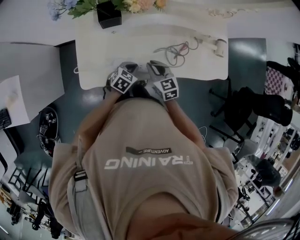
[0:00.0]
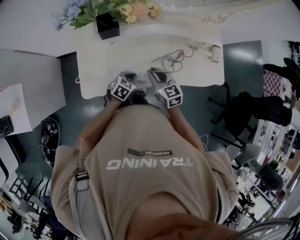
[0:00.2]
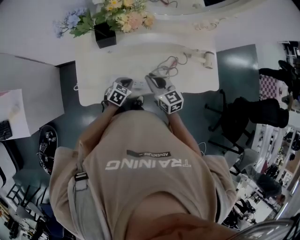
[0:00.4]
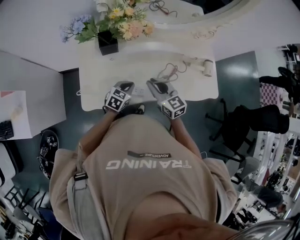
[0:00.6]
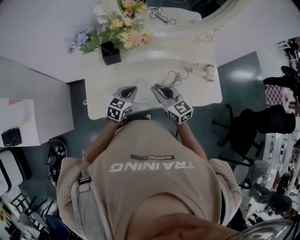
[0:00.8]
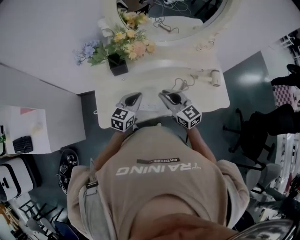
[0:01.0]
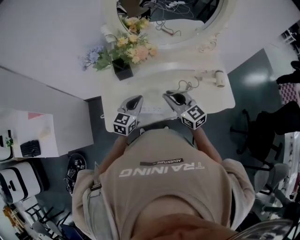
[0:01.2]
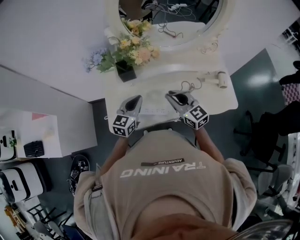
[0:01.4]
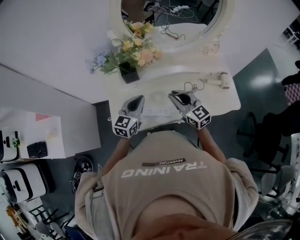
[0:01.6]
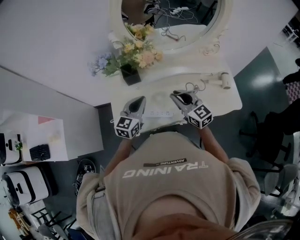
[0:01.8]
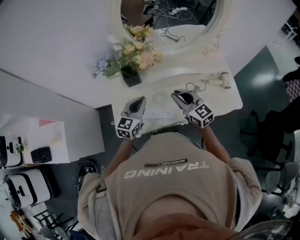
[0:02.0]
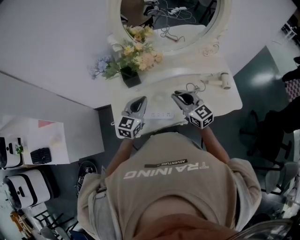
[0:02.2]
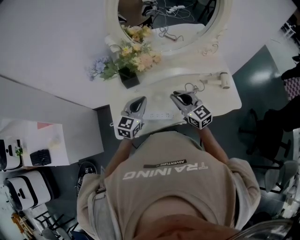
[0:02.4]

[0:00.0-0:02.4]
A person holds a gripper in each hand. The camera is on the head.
0:00.0 to 0:01.2: Both grippers travel together upward, some 20 cm. The right gripper changes its angle by approximately 20 degrees, while the left gripper turns by roughly 30 degrees.
0:01.2 to 0:02.4: There are only small adjustments of the grippers.

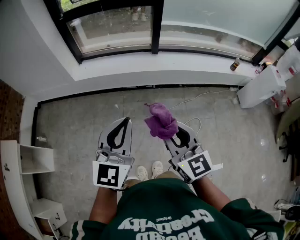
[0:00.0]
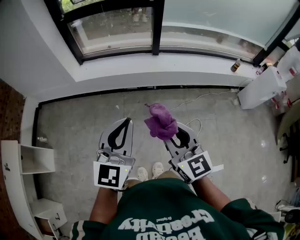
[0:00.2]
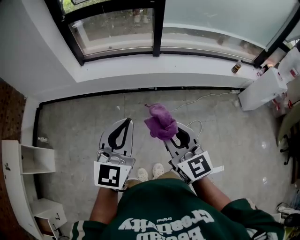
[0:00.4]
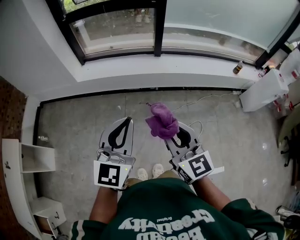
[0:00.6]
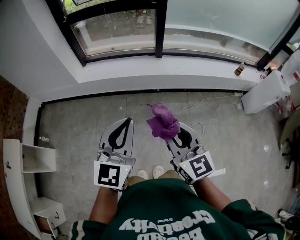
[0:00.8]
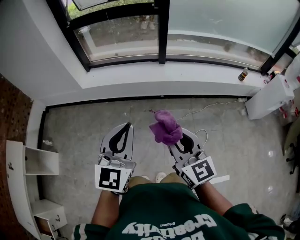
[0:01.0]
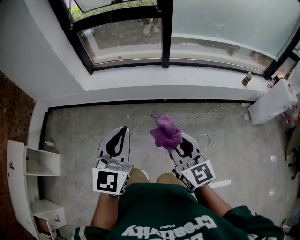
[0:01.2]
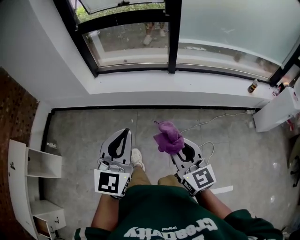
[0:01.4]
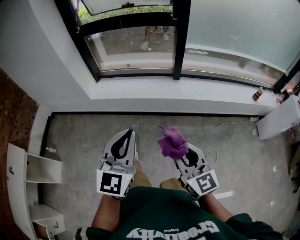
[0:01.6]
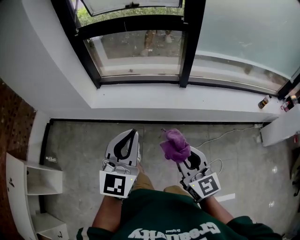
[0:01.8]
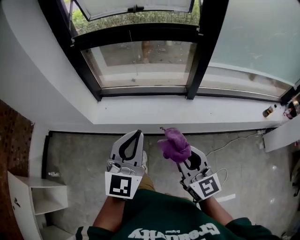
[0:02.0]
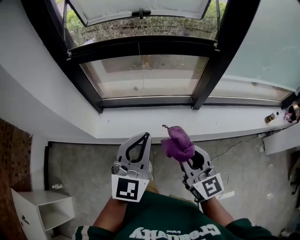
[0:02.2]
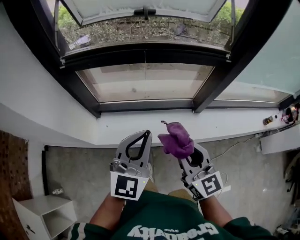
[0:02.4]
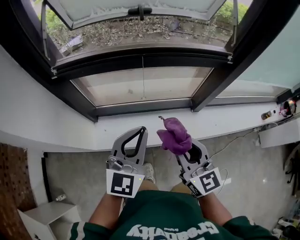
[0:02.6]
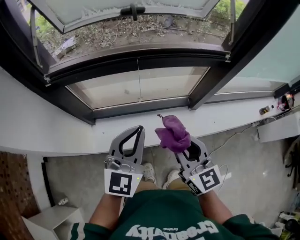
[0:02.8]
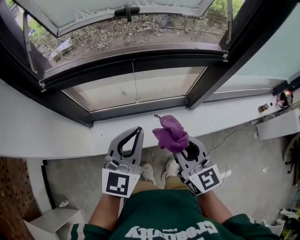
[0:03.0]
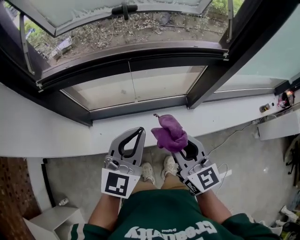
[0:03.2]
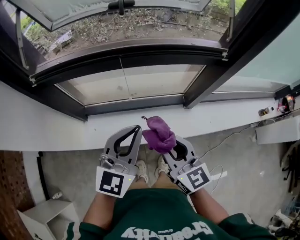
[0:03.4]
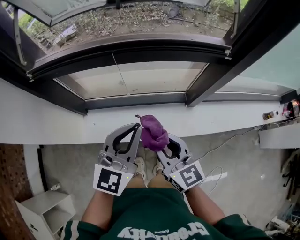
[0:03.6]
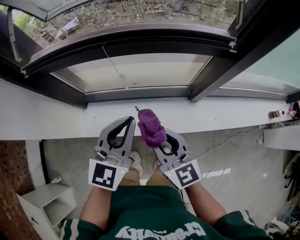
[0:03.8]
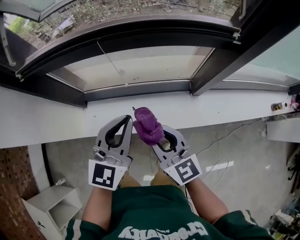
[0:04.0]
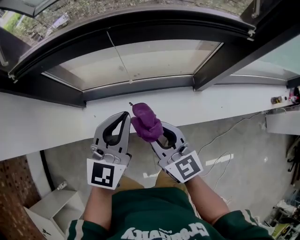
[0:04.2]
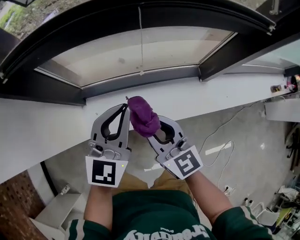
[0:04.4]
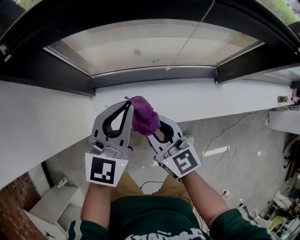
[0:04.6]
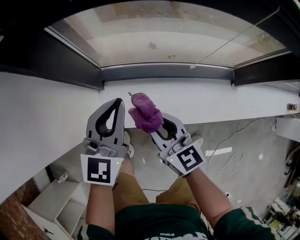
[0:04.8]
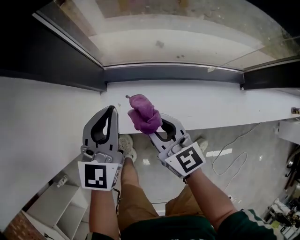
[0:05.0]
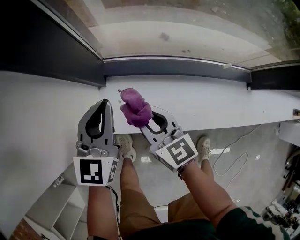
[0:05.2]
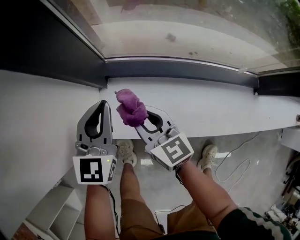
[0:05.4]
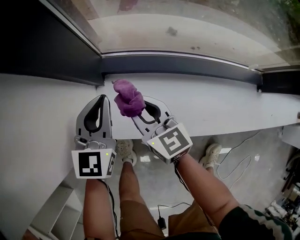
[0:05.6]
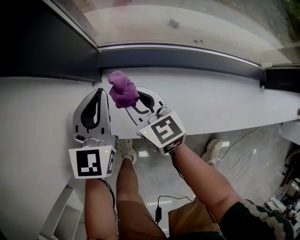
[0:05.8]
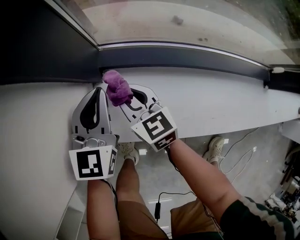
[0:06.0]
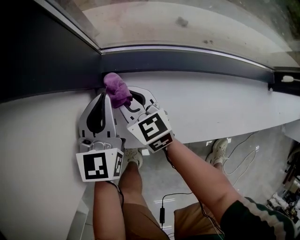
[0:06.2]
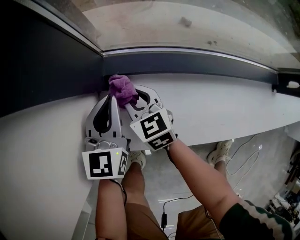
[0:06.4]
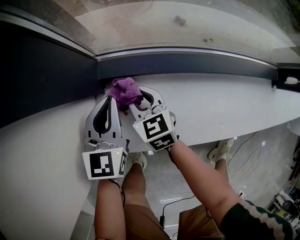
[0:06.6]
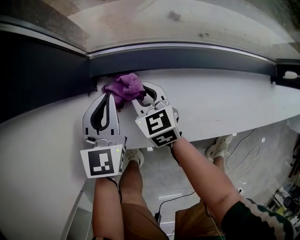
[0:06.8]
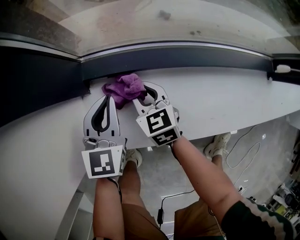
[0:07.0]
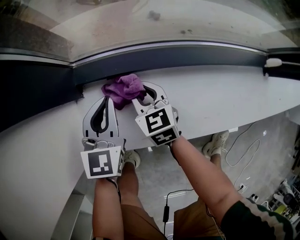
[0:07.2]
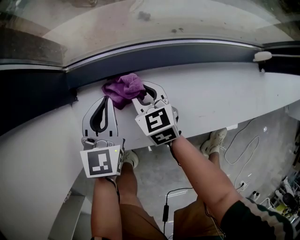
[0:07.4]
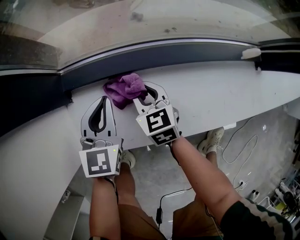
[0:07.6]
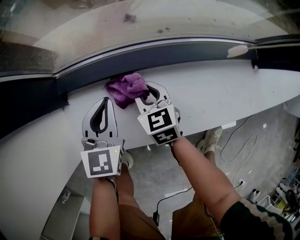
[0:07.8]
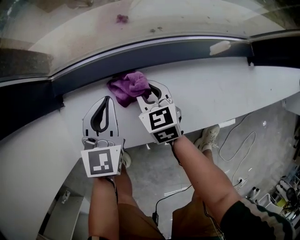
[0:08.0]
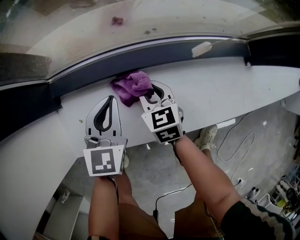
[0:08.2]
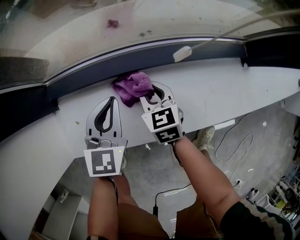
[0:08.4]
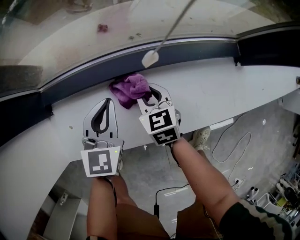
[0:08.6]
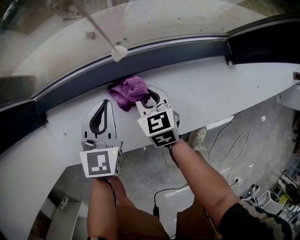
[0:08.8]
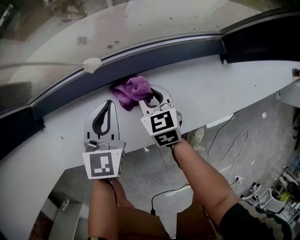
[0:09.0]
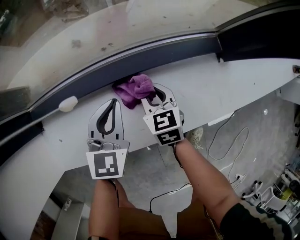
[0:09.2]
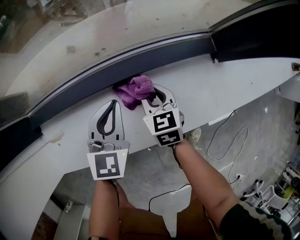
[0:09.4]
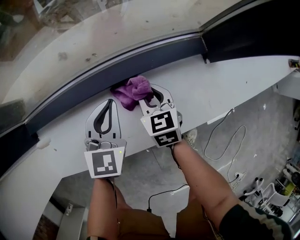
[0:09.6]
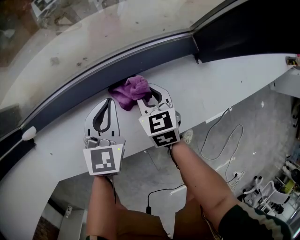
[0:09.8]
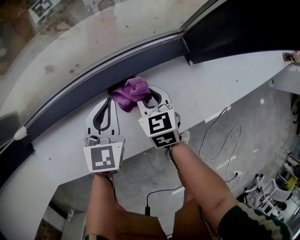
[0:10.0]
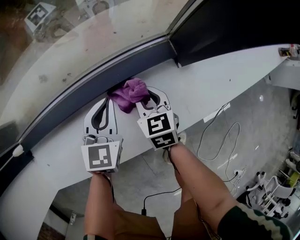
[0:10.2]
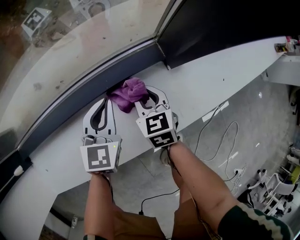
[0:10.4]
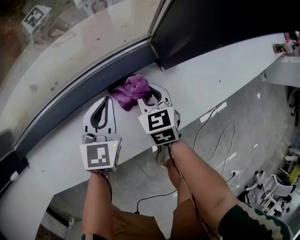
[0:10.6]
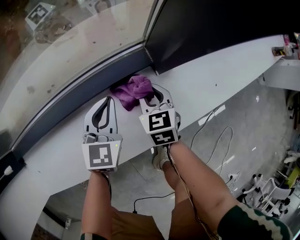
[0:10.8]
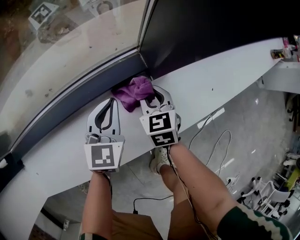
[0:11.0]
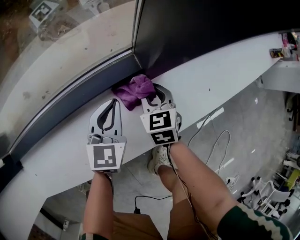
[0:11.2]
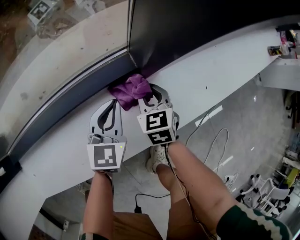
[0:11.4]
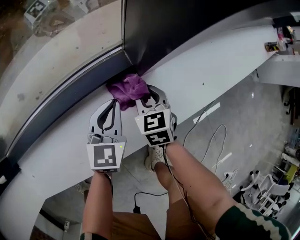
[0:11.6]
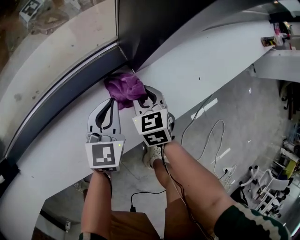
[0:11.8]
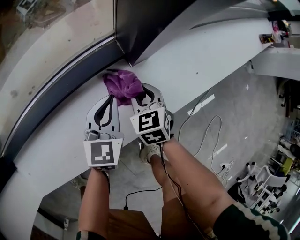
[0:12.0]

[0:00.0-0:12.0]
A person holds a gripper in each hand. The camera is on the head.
0:00.0 to 0:01.6: The right gripper shifts about 15 cm forward and downward, while the left gripper moves forward, some 15 cm.
0:01.6 to 0:03.0: The pair of grippers is taken forward and to the left, approximately 60 cm.
0:03.0 to 0:04.4: The right gripper moves downward and to the left, some 20 cm, while the left gripper goes approximately 15 cm downward, forward and to the left.
0:04.4 to 0:06.0: The grippers both shift downward, to the left and forward by some 50 cm. The left gripper swivels roughly 30 degrees, while the right gripper turns by roughly 20 degrees.
0:06.0 to 0:07.6: The right gripper goes about 20 cm to the right, and changes its angle by roughly 20 degrees; the left gripper is displaced to the right and downward by about 15 cm.
0:07.6 to 0:09.0: The grippers both shift to the right by roughly 20 cm.
0:09.0 to 0:10.4: The two grippers go some 20 cm to the right.
0:10.4 to 0:12.0: Both grippers move to the right, about 15 cm.

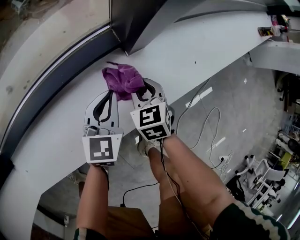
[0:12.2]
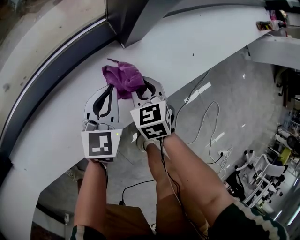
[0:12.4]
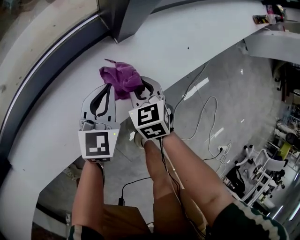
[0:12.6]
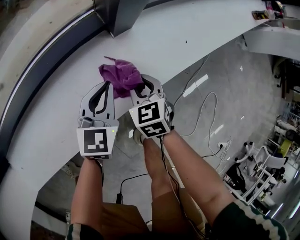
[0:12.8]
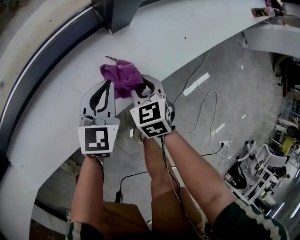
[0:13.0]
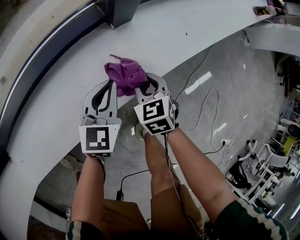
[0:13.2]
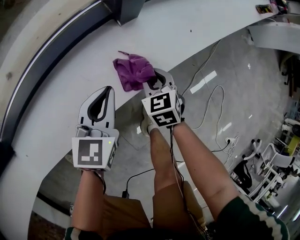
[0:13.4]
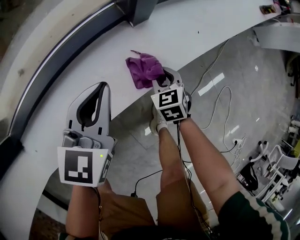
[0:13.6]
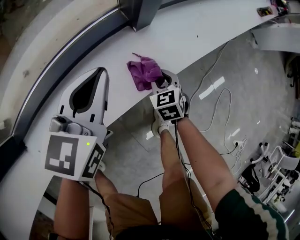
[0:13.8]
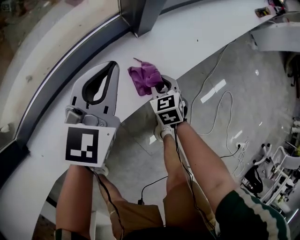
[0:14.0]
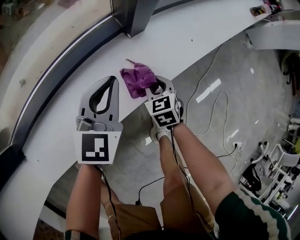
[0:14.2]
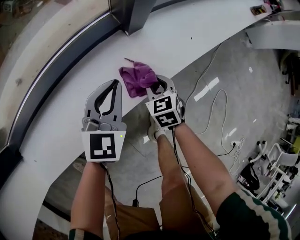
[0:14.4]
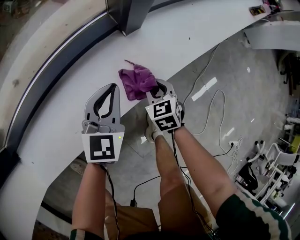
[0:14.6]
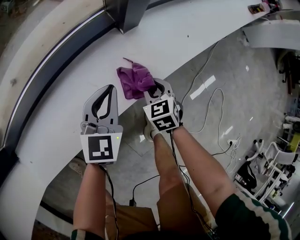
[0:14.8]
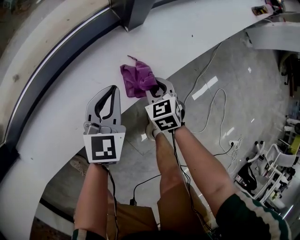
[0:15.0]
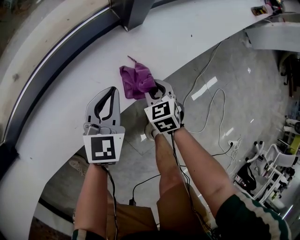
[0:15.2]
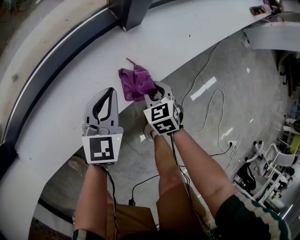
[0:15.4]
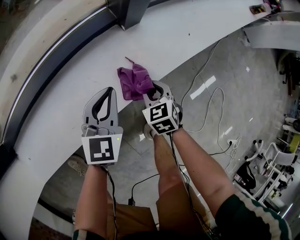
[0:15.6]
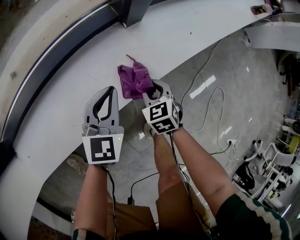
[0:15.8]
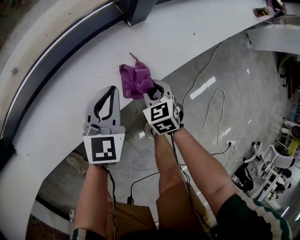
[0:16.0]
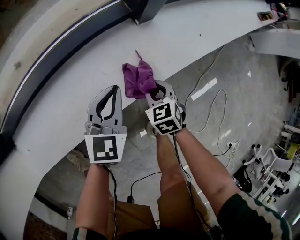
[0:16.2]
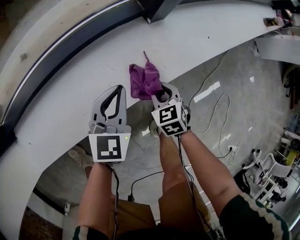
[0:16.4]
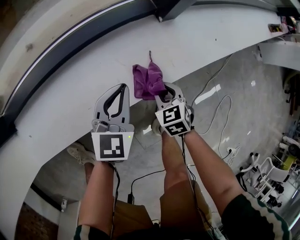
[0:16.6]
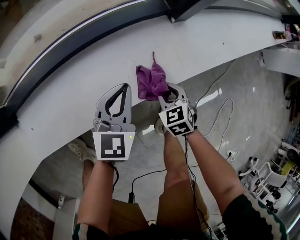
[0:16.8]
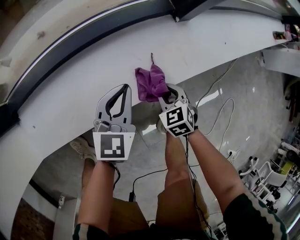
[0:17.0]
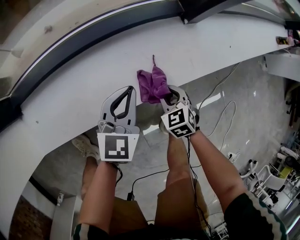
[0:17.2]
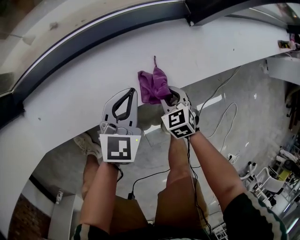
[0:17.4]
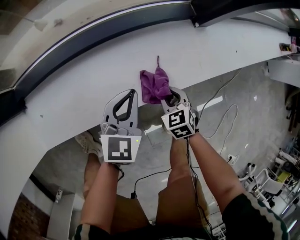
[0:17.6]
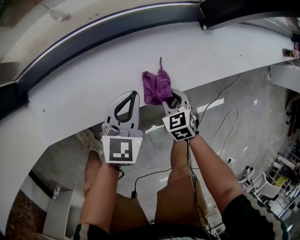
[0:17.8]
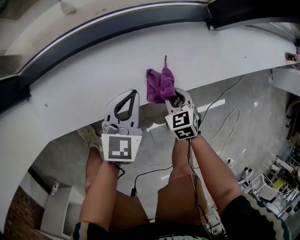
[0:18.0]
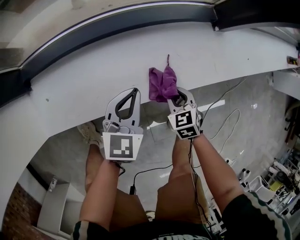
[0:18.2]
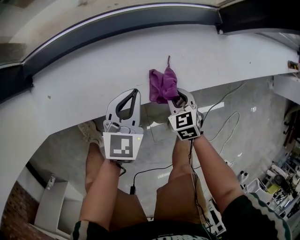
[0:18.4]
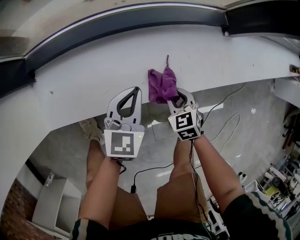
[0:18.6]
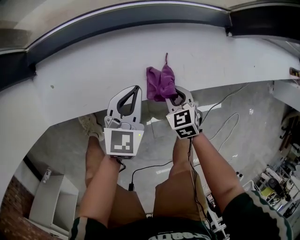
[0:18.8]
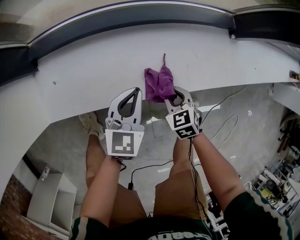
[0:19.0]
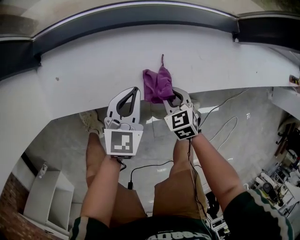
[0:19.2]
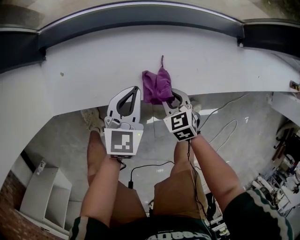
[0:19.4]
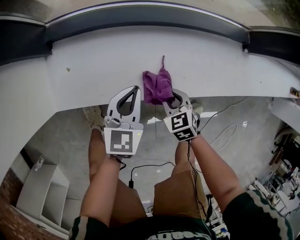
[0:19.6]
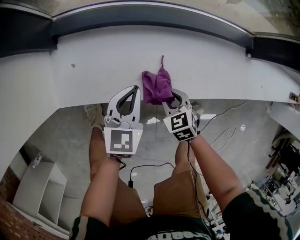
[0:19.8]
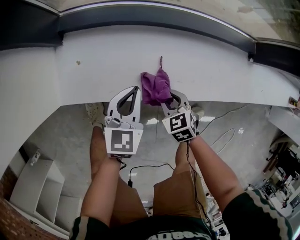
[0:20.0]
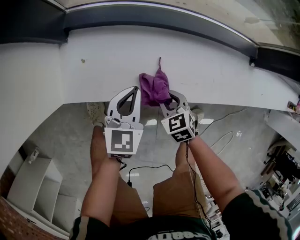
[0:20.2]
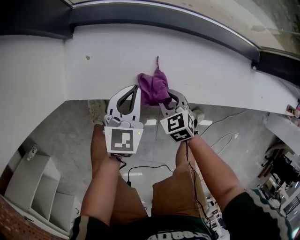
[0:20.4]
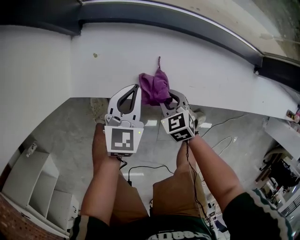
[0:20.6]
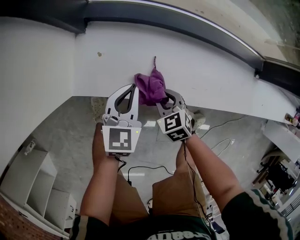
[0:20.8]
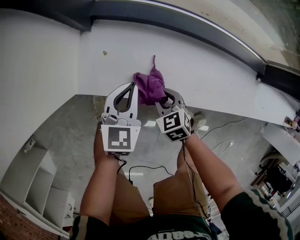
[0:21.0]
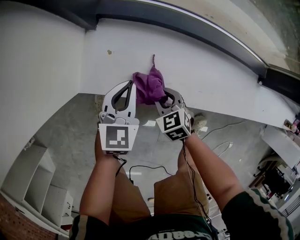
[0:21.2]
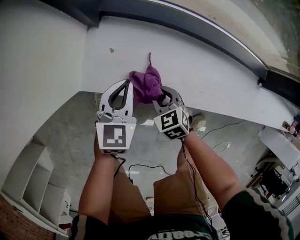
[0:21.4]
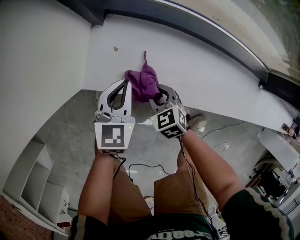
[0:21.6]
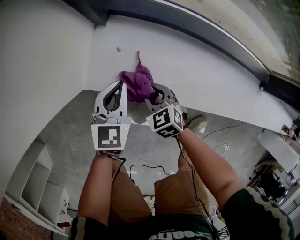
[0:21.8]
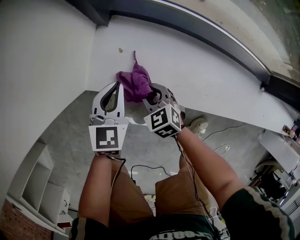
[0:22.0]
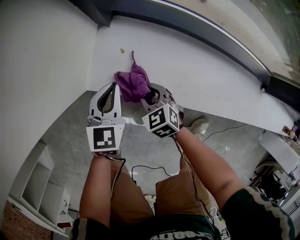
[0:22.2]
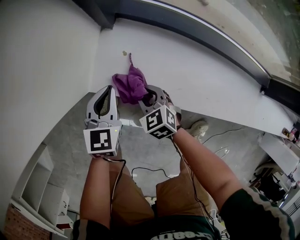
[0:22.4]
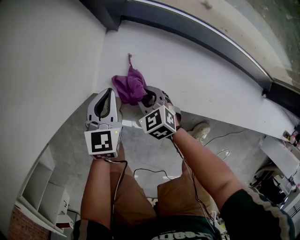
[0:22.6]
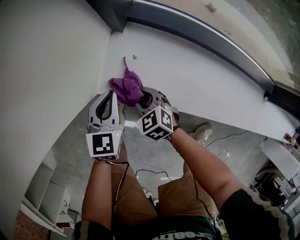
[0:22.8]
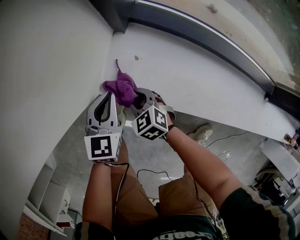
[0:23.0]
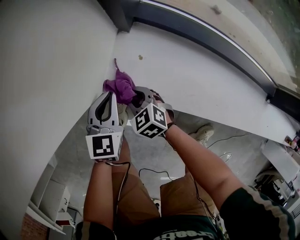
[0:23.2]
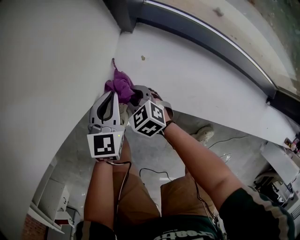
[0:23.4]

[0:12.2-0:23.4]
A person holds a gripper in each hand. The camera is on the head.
0:12.2 to 0:13.8: The right gripper travels backward by approximately 10 cm, while the left gripper shifts some 15 cm upward.
0:13.8 to 0:15.4: The left gripper moves downward, about 15 cm.
0:15.4 to 0:17.0: The grippers both shift to the left and backward by about 10 cm.
0:17.0 to 0:18.6: Both grippers travel together to the left, some 15 cm.
0:18.6 to 0:20.2: The two grippers go some 15 cm to the left.
0:20.2 to 0:21.8: Both grippers move to the left, about 15 cm.
0:21.8 to 0:23.4: The left gripper heads to the left, covering about 10 cm. The right gripper travels to the left and forward by approximately 15 cm.
